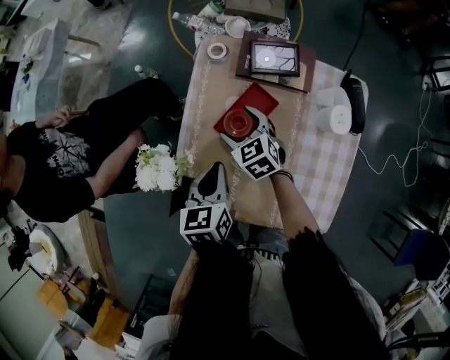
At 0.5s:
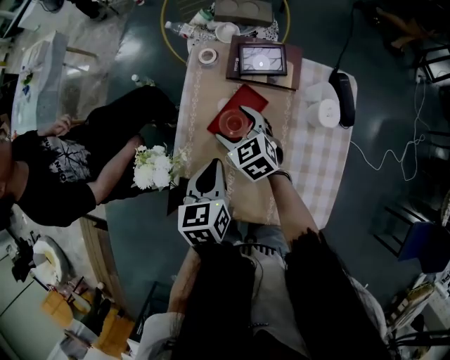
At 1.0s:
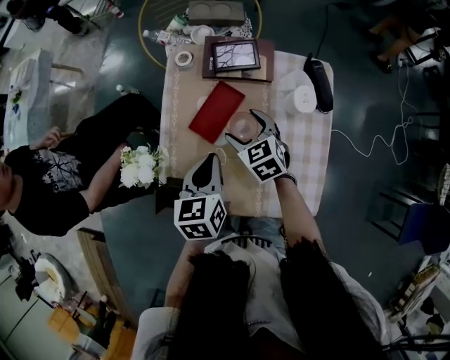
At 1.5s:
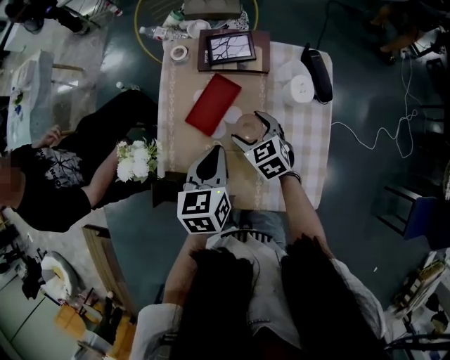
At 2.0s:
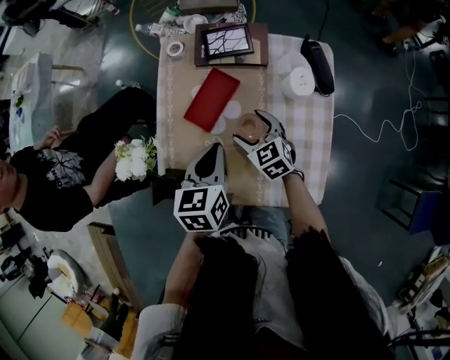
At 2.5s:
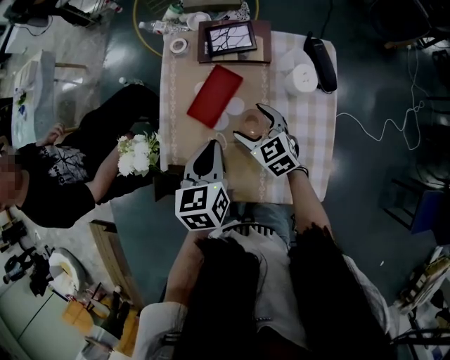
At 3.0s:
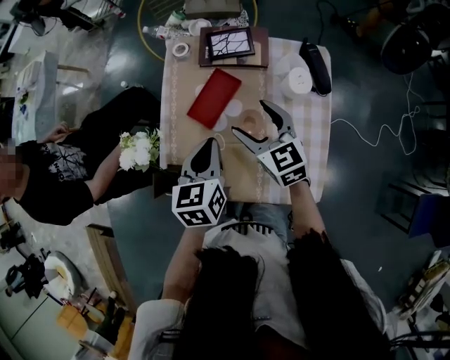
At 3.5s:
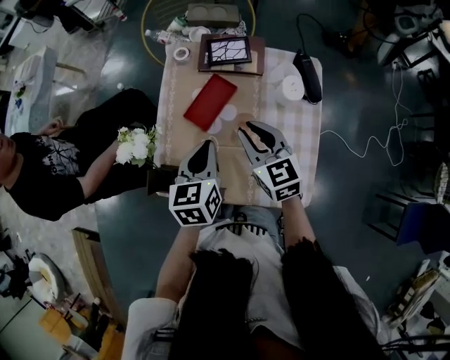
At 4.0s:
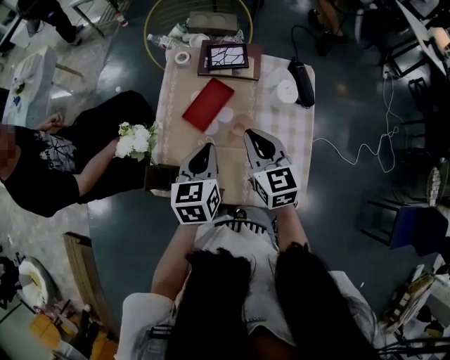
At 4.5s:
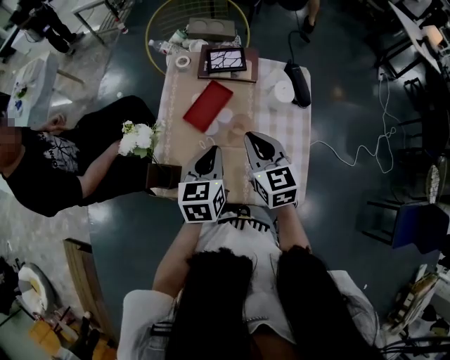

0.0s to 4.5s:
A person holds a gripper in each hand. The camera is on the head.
0.0s to 2.0s: The right gripper shifts approximately 15 cm to the right and backward. The left gripper goes approximately 10 cm to the right.
2.0s to 4.5s: The left gripper heads backward, covering about 5 cm. Meanwhile the right gripper is displaced upward and backward by approximately 20 cm, turns by some 20 degrees, and closes.

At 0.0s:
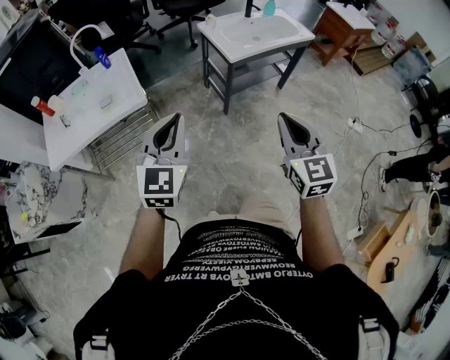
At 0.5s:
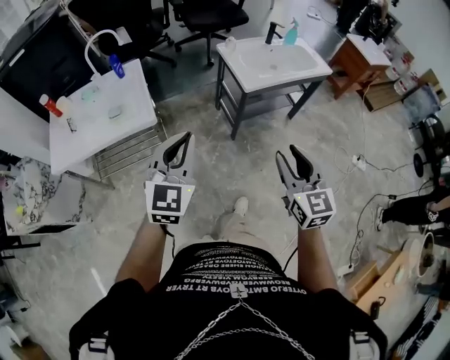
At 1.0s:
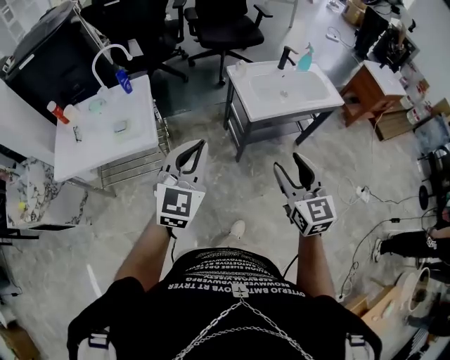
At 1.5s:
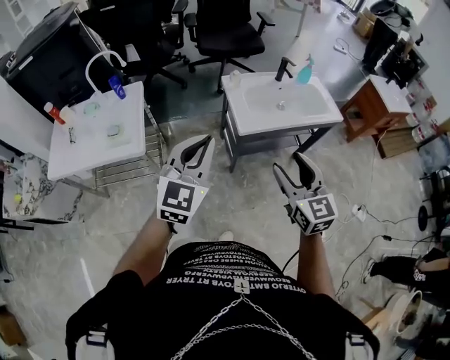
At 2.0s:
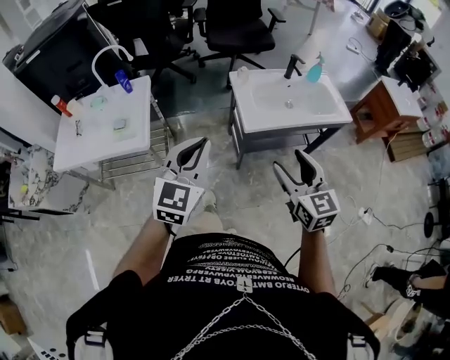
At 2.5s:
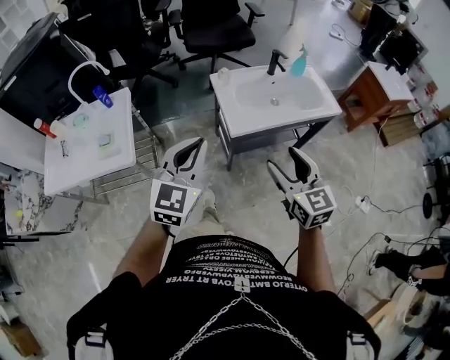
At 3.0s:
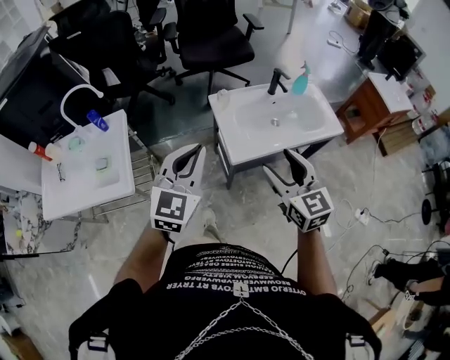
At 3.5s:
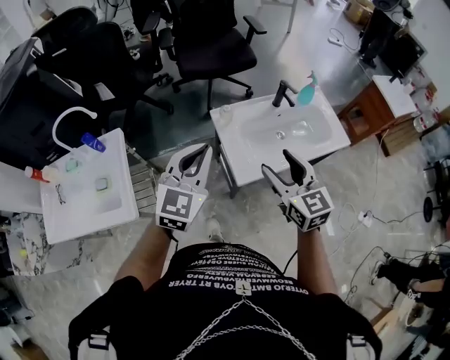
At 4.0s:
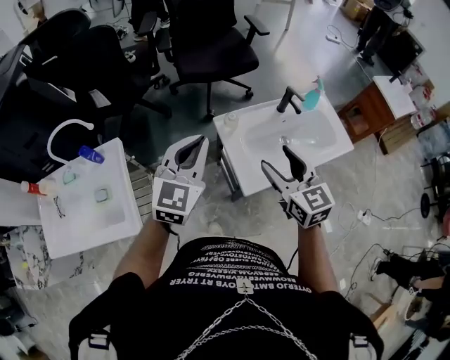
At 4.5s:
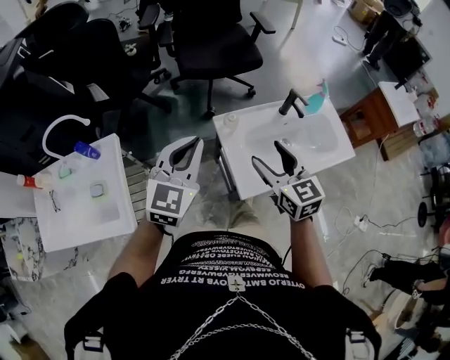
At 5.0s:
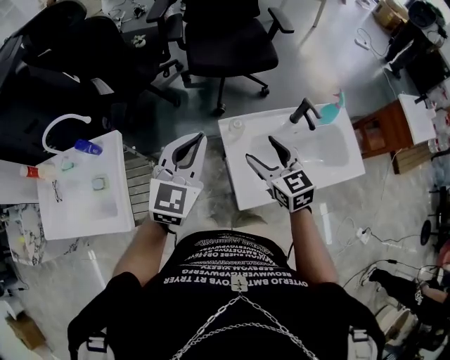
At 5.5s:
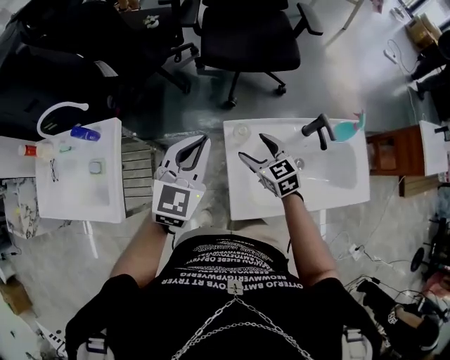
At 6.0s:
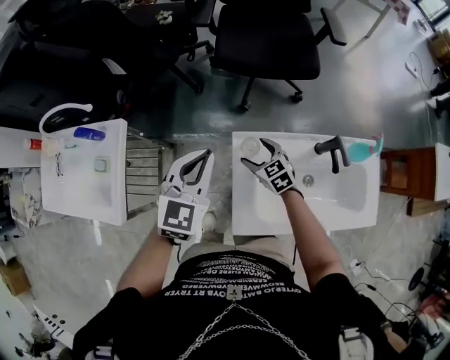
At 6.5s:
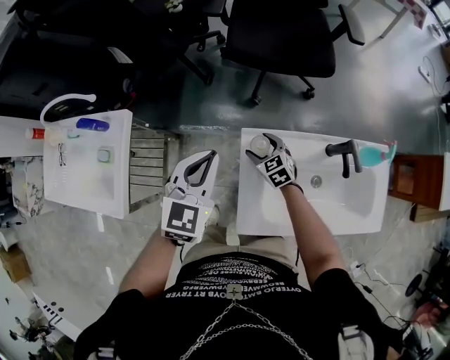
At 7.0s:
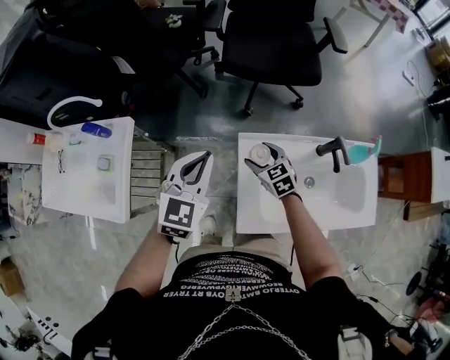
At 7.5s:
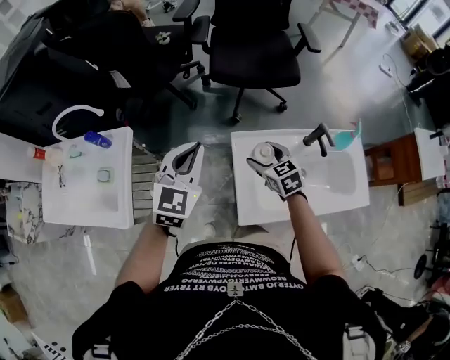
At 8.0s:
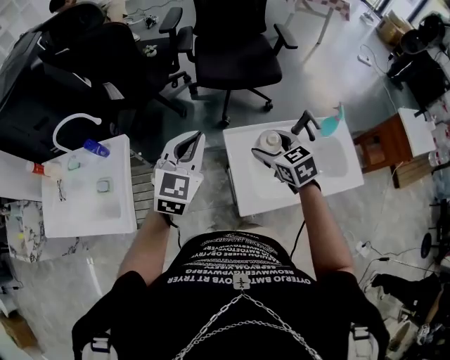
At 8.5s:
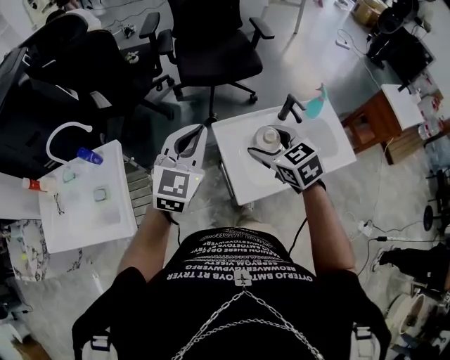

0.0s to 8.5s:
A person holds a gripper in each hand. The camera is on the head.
0.0s to 2.0s: The grippers both shift forward and to the right by some 30 cm. The right gripper swivels roughly 20 degrees, and opens.
2.0s to 4.0s: Both grippers travel together forward, roughly 40 cm.
4.0s to 6.5s: The left gripper moves approximately 25 cm, and swivels about 30 degrees. Meanwhile the right gripper travels downward by approximately 35 cm, and swivels some 40 degrees.
6.5s to 8.5s: The right gripper heads upward and backward, covering some 40 cm. The left gripper goes about 20 cm upward and backward, and rotates approximately 20 degrees.

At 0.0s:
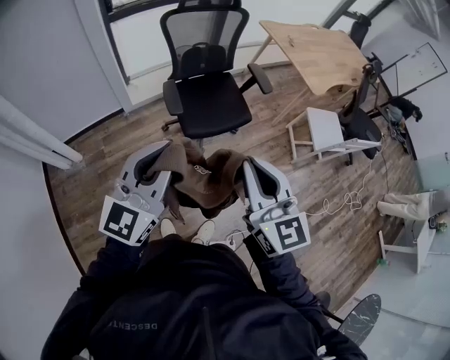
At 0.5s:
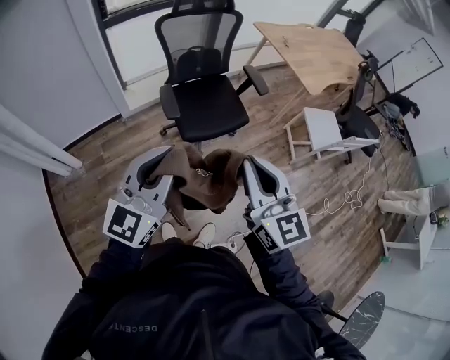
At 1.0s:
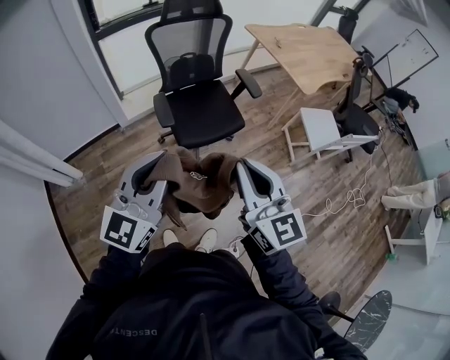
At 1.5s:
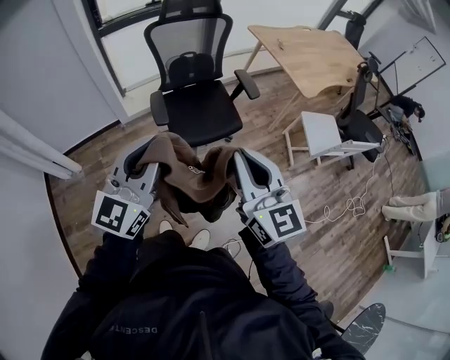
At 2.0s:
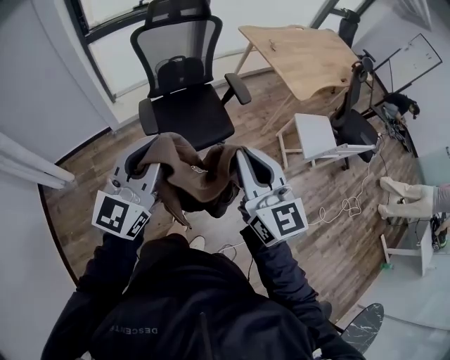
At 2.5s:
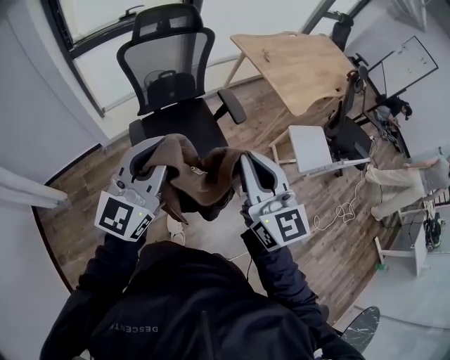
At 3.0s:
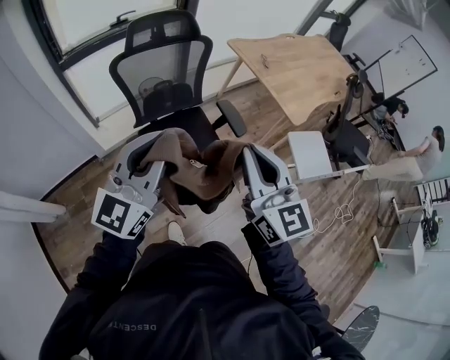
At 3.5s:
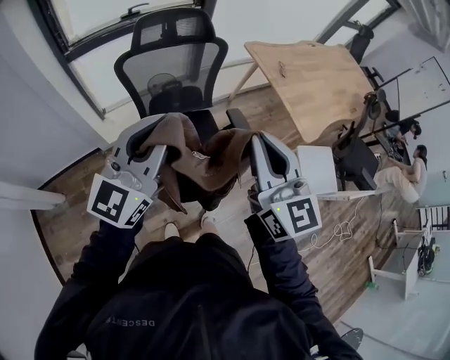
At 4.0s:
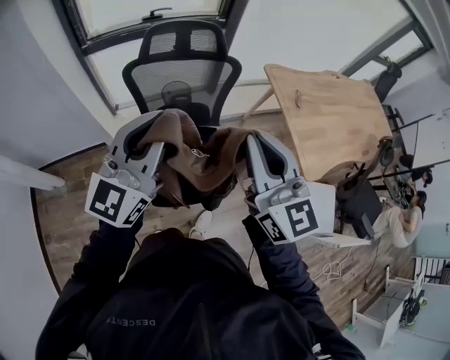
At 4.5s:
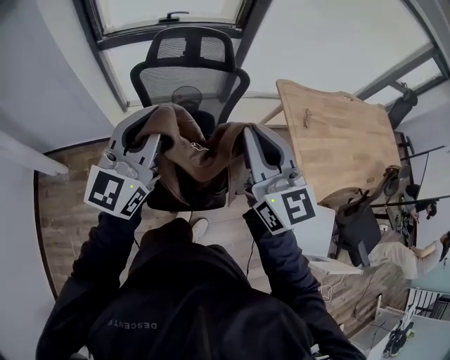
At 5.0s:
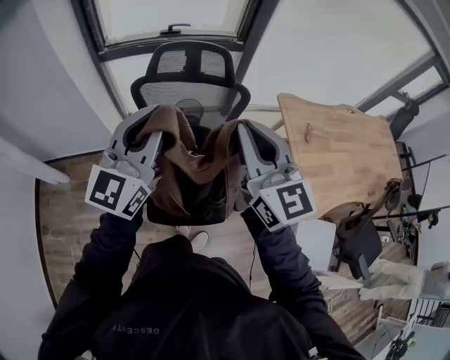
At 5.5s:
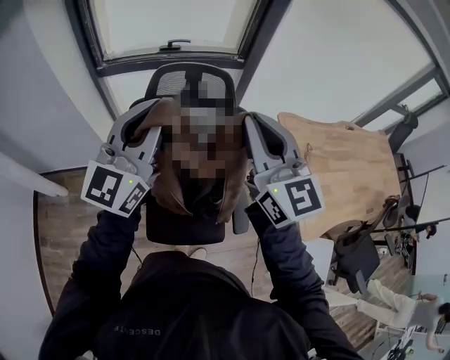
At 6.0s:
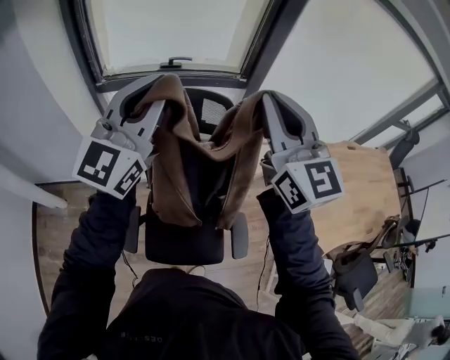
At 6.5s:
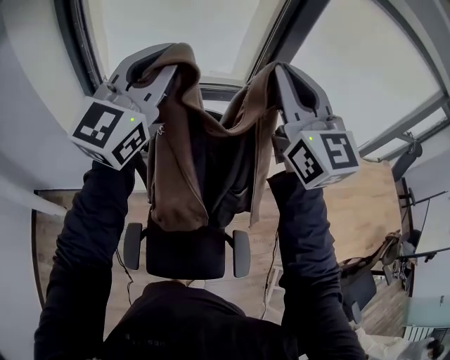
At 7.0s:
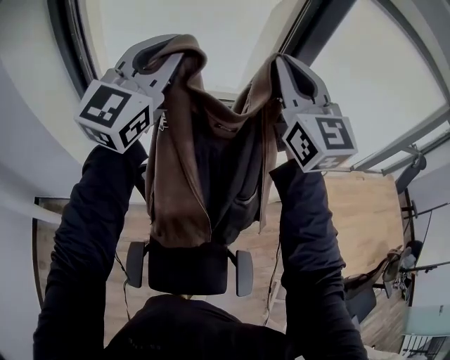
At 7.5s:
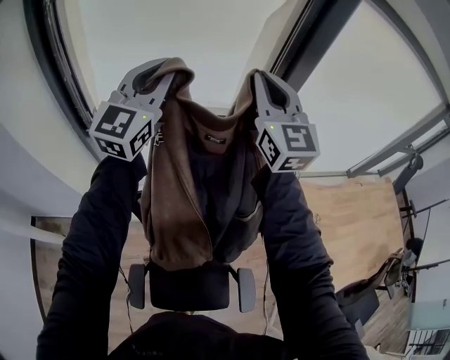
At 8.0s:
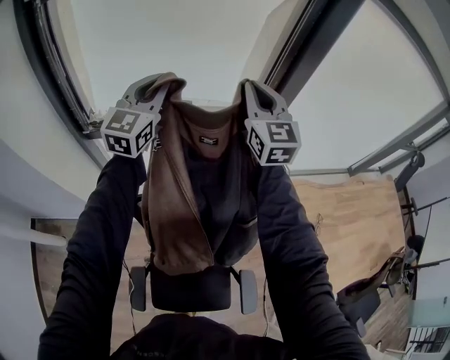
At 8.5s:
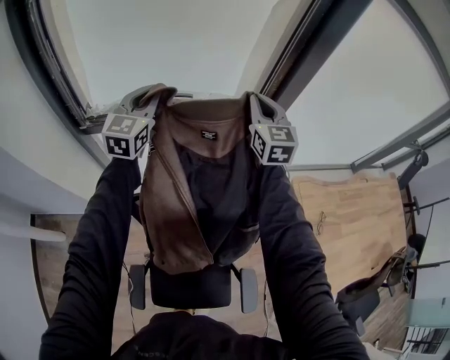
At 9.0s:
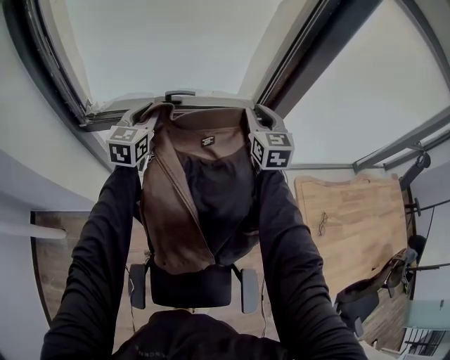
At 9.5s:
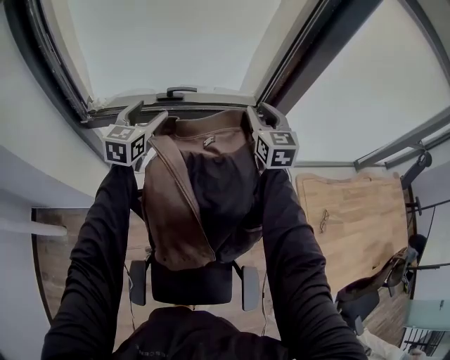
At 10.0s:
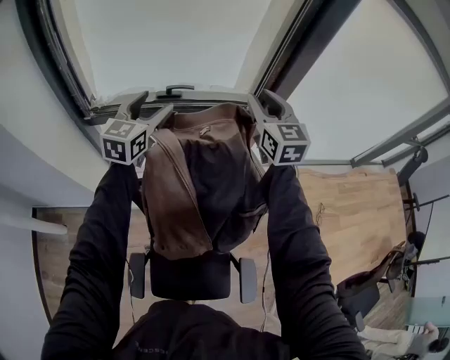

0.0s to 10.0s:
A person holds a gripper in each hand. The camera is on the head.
0.0s to 2.0s: The grippers both shift to the right and forward by about 15 cm.
2.0s to 4.0s: Both grippers move forward, about 40 cm.
4.0s to 6.0s: The left gripper goes approximately 30 cm forward and upward. Meanwhile the right gripper moves forward, some 30 cm.
6.0s to 8.0s: Both grippers travel together forward, approximately 35 cm.
8.0s to 10.0s: Both grippers move downward, some 10 cm. The left gripper opens, while the right gripper opens its fingers.

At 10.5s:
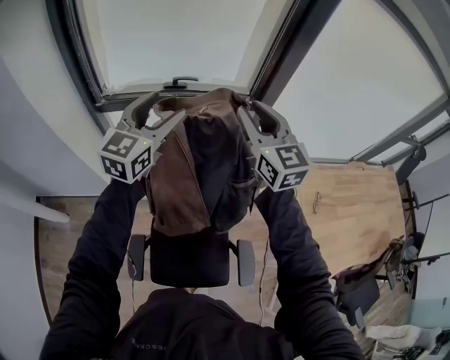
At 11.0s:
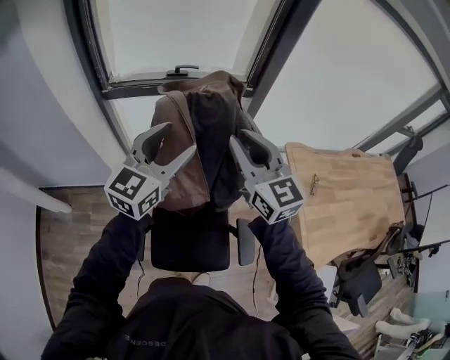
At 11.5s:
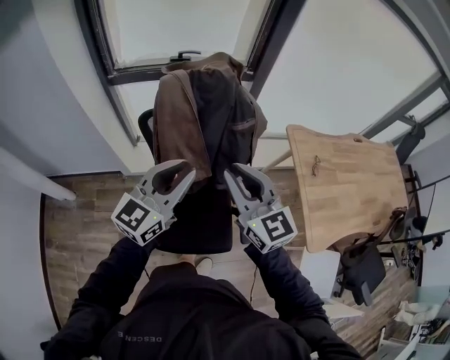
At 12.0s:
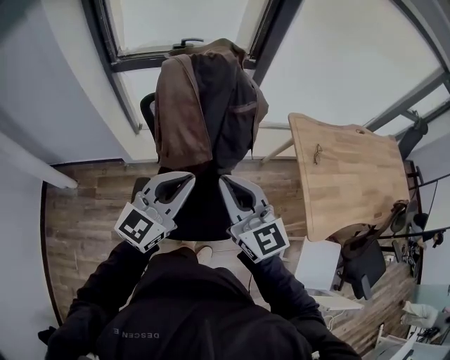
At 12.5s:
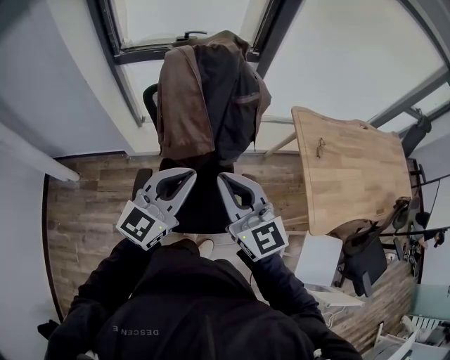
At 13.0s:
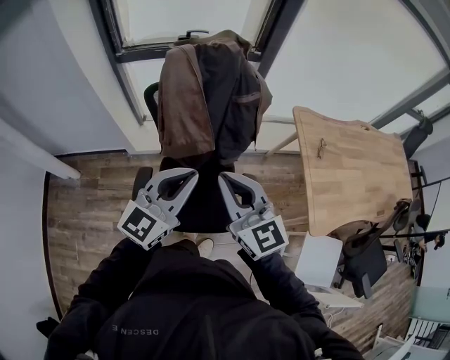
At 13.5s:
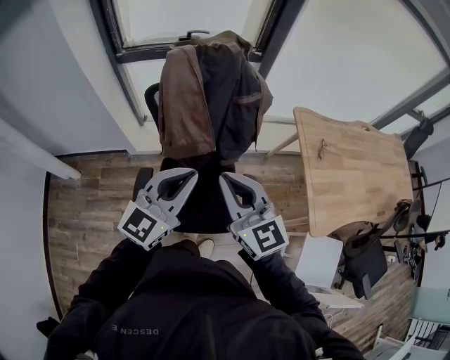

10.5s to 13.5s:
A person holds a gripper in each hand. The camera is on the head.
10.5s to 12.0s: The two grippers travel together, backward, about 40 cm. The left gripper closes. The right gripper closes up.
12.0s to 13.5s: The grippers move only a little.
